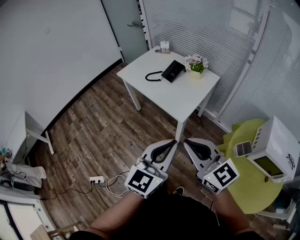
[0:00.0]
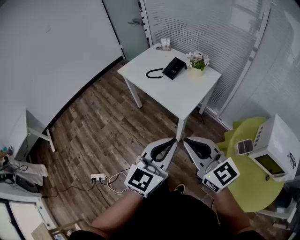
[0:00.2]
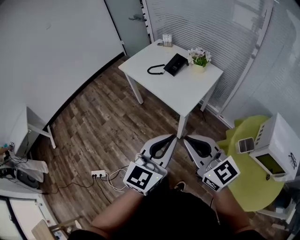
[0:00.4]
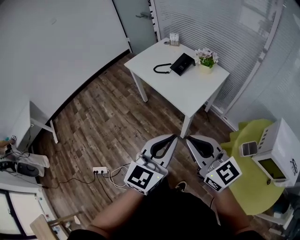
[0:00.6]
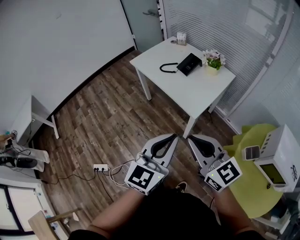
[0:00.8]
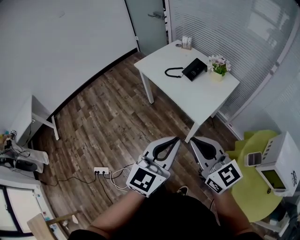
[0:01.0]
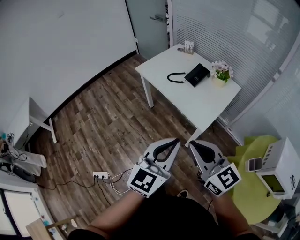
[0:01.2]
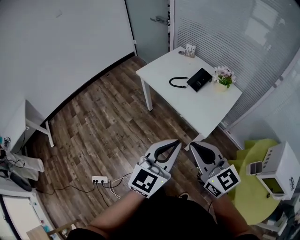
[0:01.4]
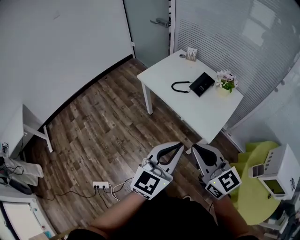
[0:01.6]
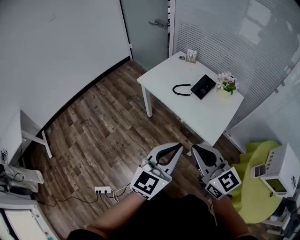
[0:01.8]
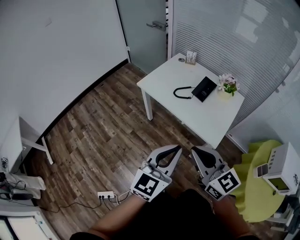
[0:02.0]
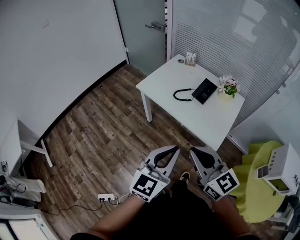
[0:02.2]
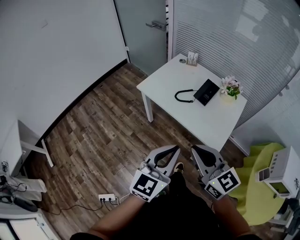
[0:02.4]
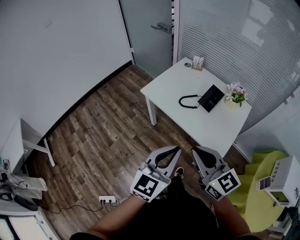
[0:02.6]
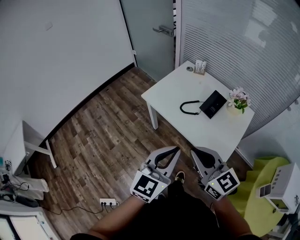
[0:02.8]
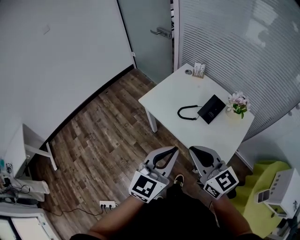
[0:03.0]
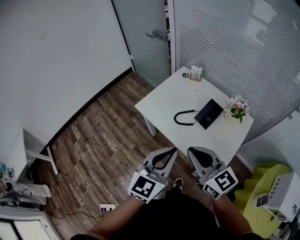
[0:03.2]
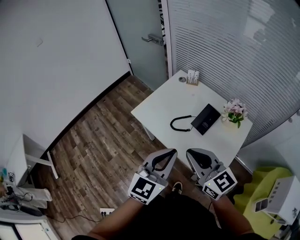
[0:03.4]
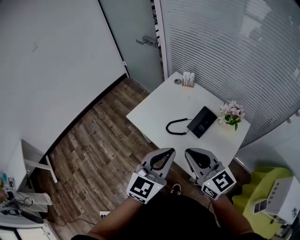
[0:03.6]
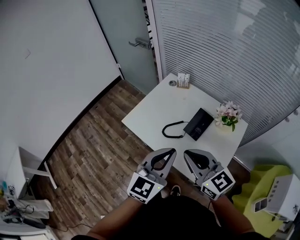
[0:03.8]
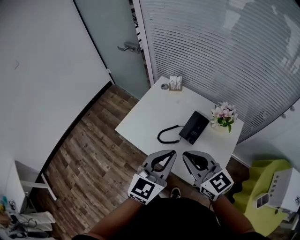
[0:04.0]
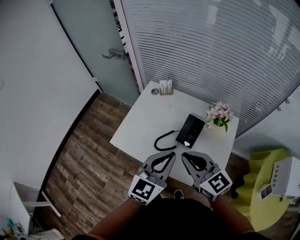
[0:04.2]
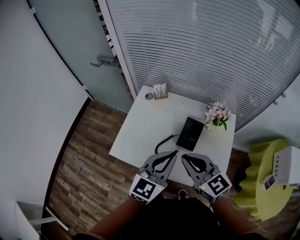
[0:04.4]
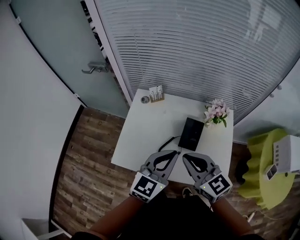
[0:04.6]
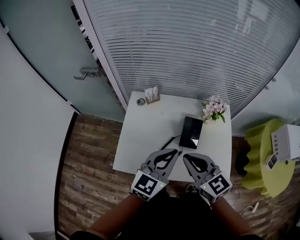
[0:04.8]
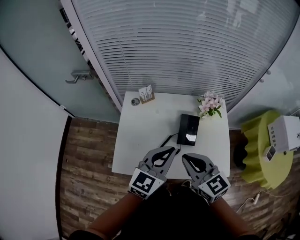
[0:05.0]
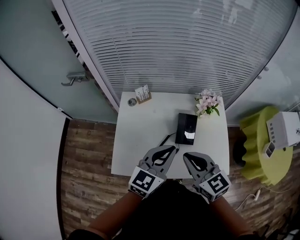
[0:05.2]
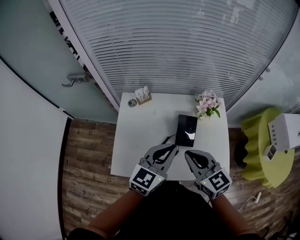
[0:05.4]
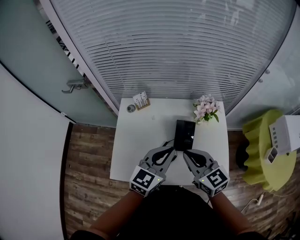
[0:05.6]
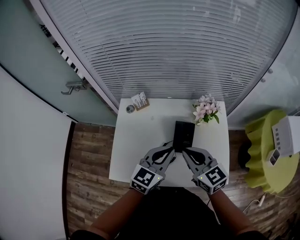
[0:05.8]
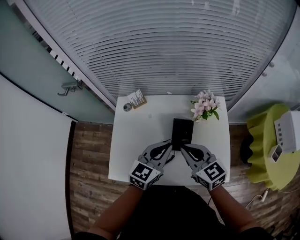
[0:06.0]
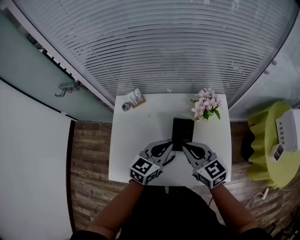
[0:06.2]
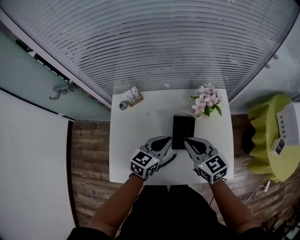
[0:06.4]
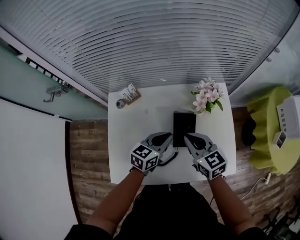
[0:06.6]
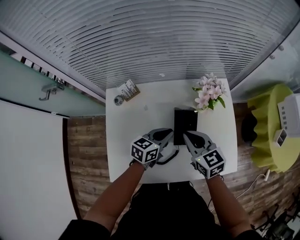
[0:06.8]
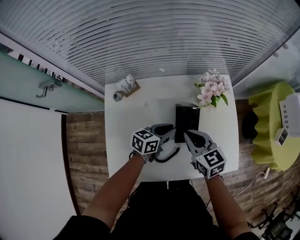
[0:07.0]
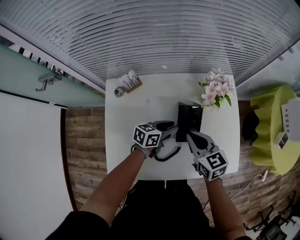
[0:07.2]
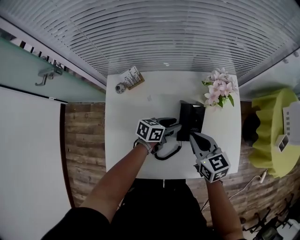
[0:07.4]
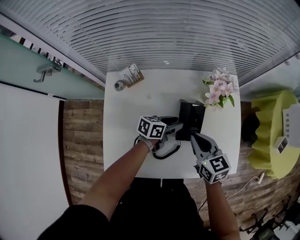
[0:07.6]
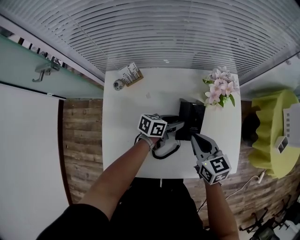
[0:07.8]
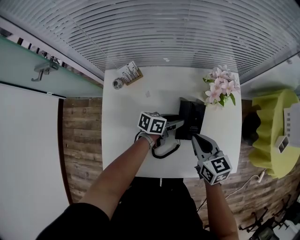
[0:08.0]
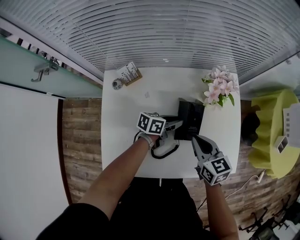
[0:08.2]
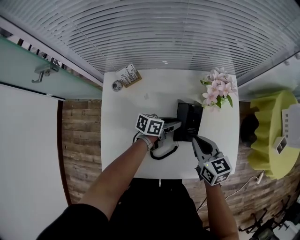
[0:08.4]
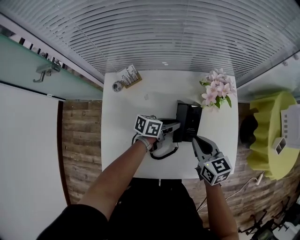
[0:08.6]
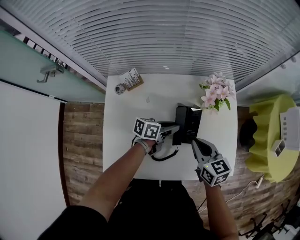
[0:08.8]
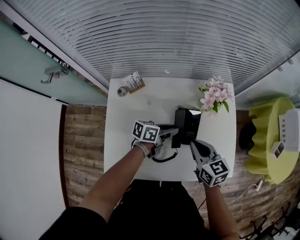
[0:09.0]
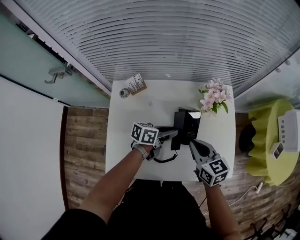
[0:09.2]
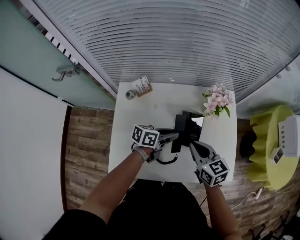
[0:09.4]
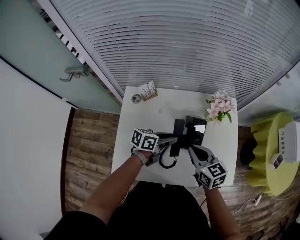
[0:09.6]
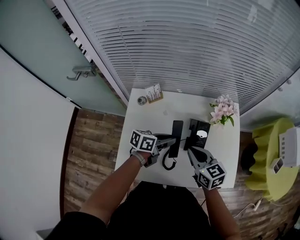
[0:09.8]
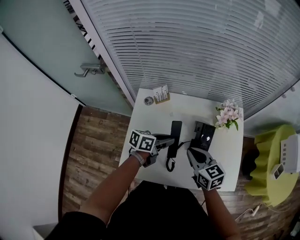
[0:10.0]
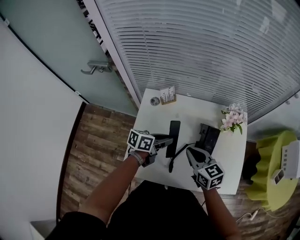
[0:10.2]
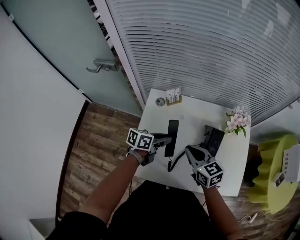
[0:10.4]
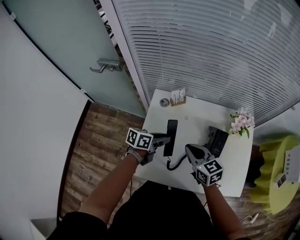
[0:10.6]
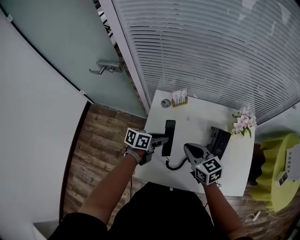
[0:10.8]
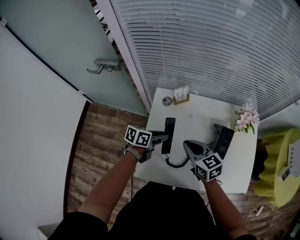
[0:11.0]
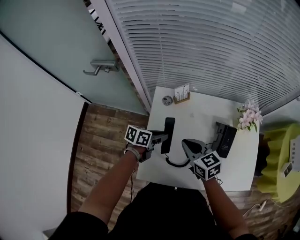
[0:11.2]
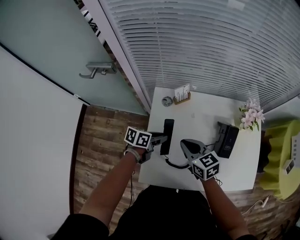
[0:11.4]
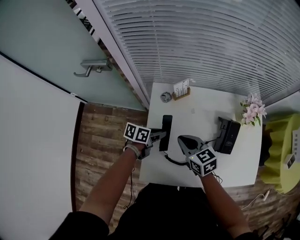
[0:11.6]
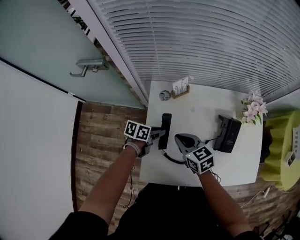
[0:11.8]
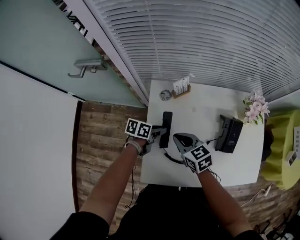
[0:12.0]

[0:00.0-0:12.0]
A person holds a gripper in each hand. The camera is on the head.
0:00.0 to 0:01.6: Both grippers travel together to the left and forward, some 25 cm.
0:01.6 to 0:03.0: The grippers both shift forward by approximately 20 cm.
0:03.0 to 0:04.4: Both grippers move forward, about 25 cm. The right gripper rotates about 20 degrees, while the left gripper turns by roughly 30 degrees.
0:04.4 to 0:06.0: The two grippers go about 15 cm forward and downward. The left gripper swivels roughly 20 degrees; the right gripper turns by some 20 degrees.
0:06.0 to 0:07.6: The left gripper shifts roughly 25 cm downward, turns by approximately 50 degrees, and opens up. The right gripper heads downward, covering approximately 15 cm, and rotates roughly 20 degrees.
0:07.6 to 0:09.0: The left gripper travels upward by roughly 5 cm, and closes.
0:09.0 to 0:10.4: The right gripper is displaced to the left by about 15 cm, while the left gripper shifts about 20 cm to the left, upward and backward.
0:10.4 to 0:12.0: The left gripper moves downward and to the left, some 15 cm. The right gripper goes roughly 20 cm to the left and downward.

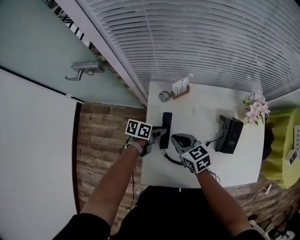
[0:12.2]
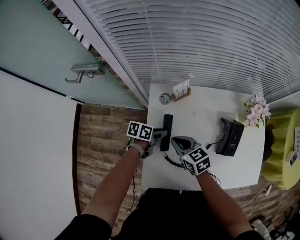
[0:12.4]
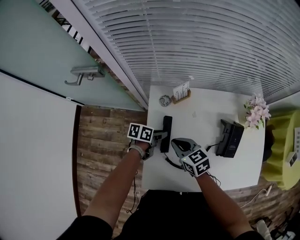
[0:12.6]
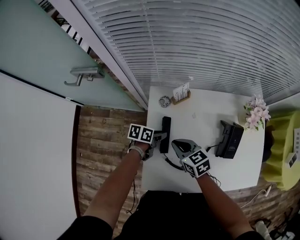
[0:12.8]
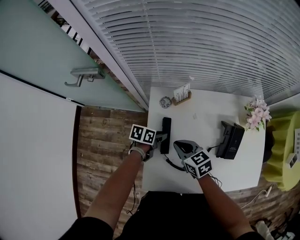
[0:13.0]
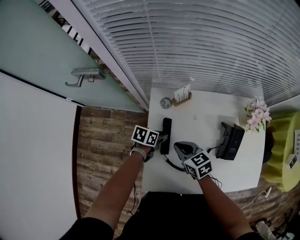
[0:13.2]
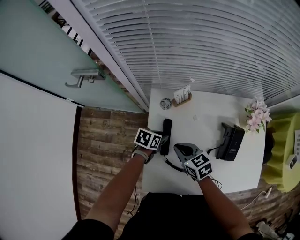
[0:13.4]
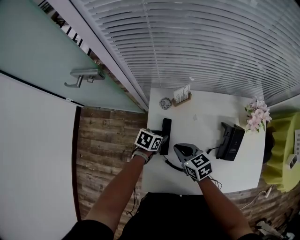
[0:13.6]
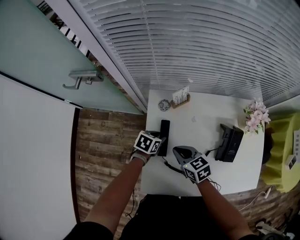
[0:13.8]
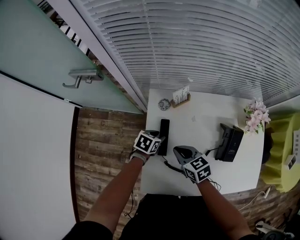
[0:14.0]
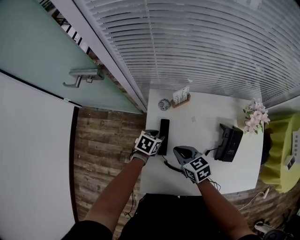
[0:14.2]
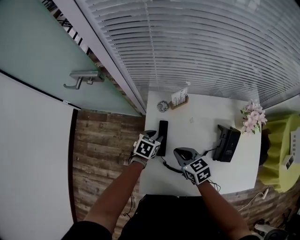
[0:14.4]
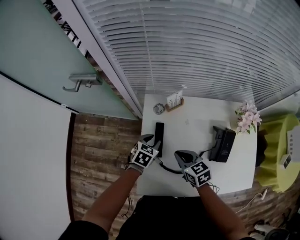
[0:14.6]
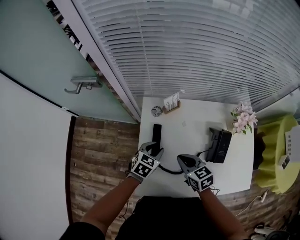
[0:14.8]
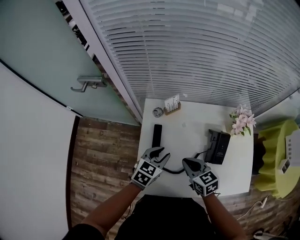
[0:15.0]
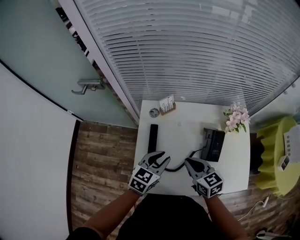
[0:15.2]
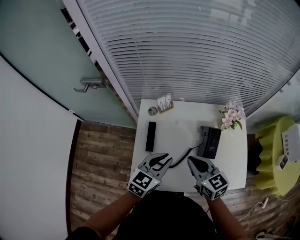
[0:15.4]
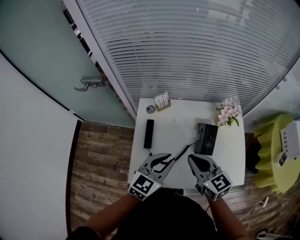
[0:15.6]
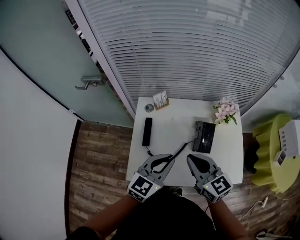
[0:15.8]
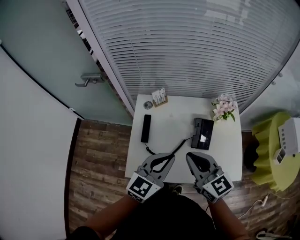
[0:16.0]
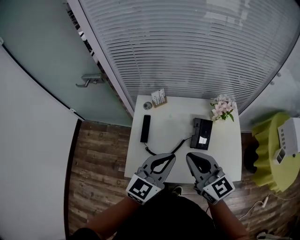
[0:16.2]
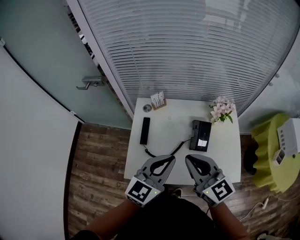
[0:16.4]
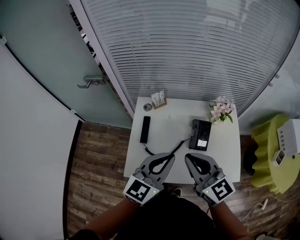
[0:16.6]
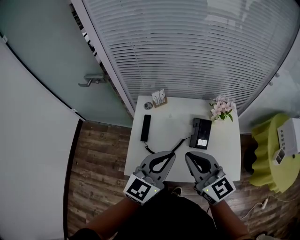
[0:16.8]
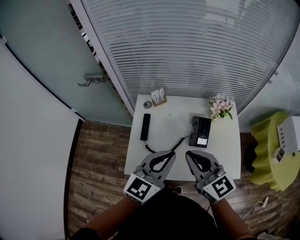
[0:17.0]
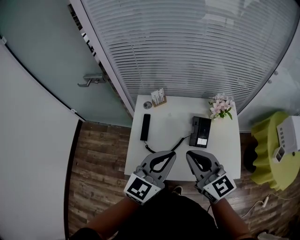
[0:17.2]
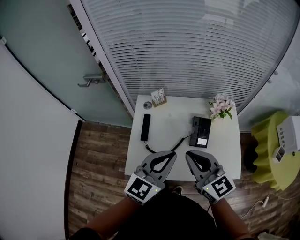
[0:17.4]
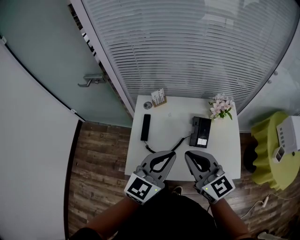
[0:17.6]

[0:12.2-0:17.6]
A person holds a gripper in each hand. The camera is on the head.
0:12.2 to 0:13.6: The left gripper swivels some 20 degrees.
0:13.6 to 0:15.0: The right gripper moves to the right, upward and backward, approximately 10 cm. Meanwhile the left gripper travels upward, backward and to the right by approximately 15 cm, and swivels approximately 30 degrees.
0:15.0 to 0:16.2: The grippers both shift upward, backward and to the right by roughly 25 cm. The left gripper rotates roughly 30 degrees, and closes, while the right gripper swivels some 30 degrees.
0:16.2 to 0:17.6: The grippers move only a little.

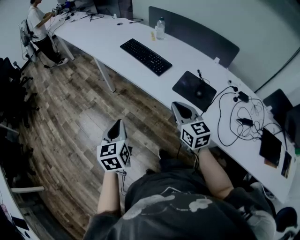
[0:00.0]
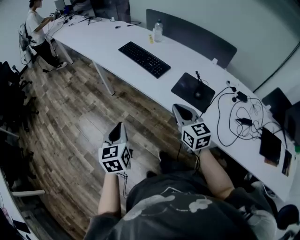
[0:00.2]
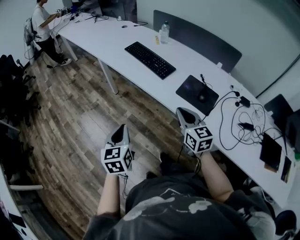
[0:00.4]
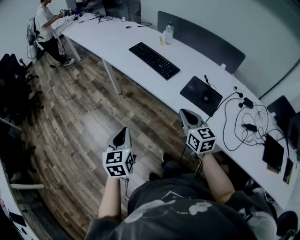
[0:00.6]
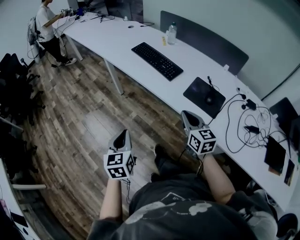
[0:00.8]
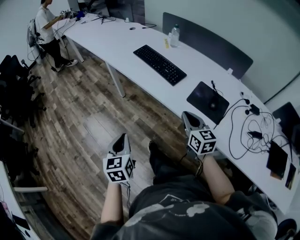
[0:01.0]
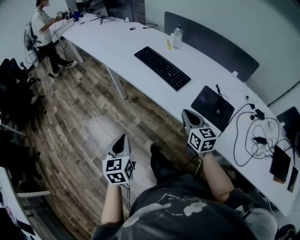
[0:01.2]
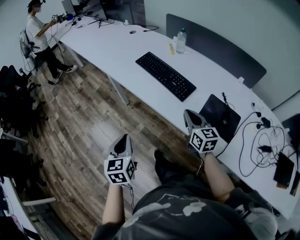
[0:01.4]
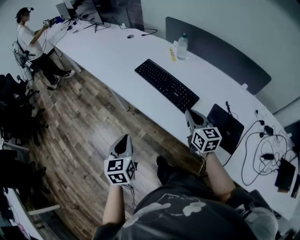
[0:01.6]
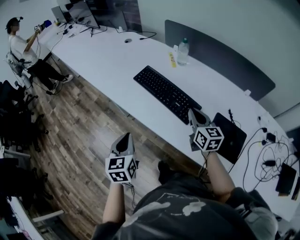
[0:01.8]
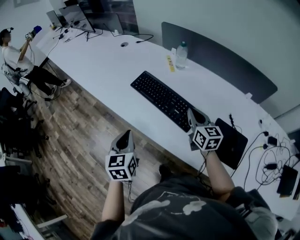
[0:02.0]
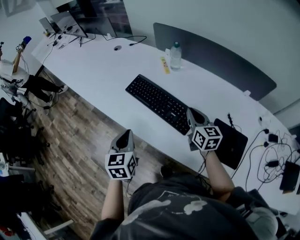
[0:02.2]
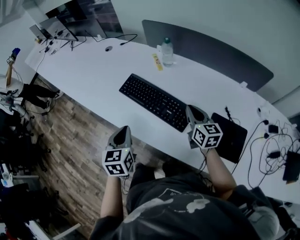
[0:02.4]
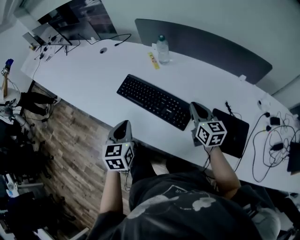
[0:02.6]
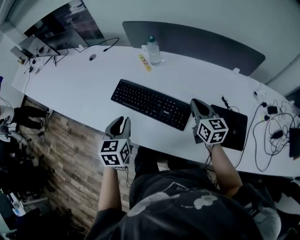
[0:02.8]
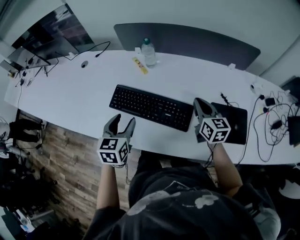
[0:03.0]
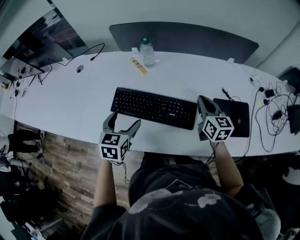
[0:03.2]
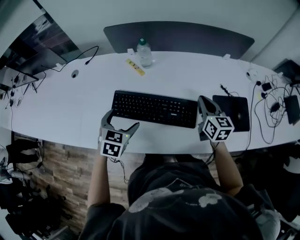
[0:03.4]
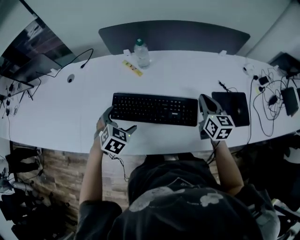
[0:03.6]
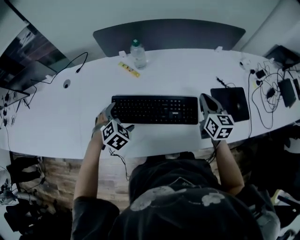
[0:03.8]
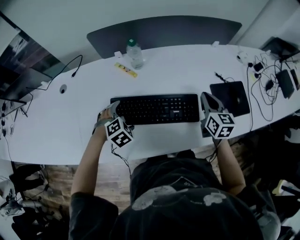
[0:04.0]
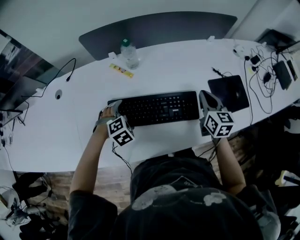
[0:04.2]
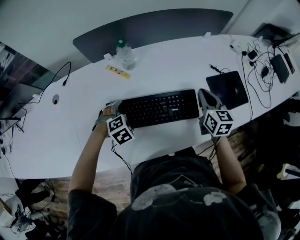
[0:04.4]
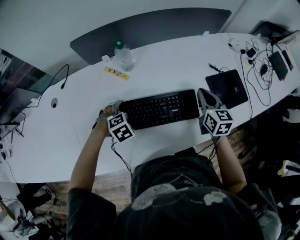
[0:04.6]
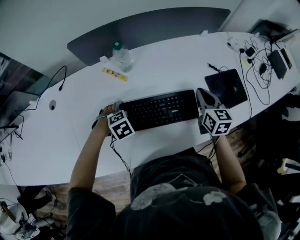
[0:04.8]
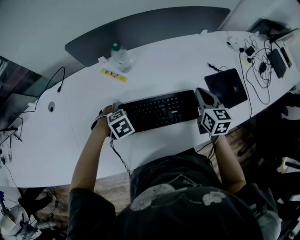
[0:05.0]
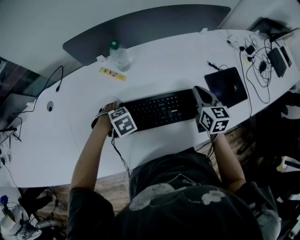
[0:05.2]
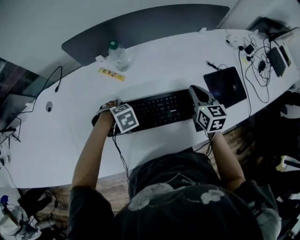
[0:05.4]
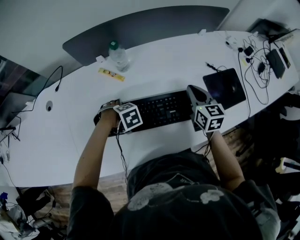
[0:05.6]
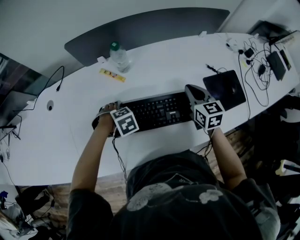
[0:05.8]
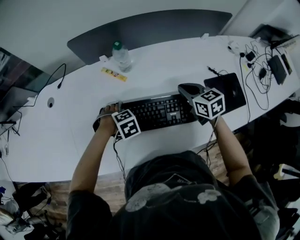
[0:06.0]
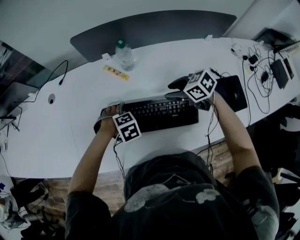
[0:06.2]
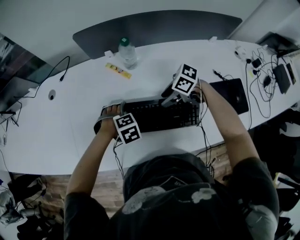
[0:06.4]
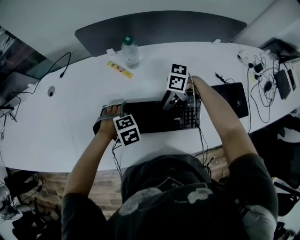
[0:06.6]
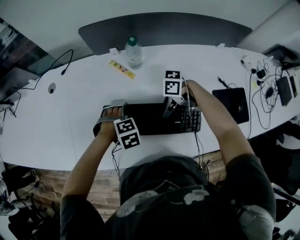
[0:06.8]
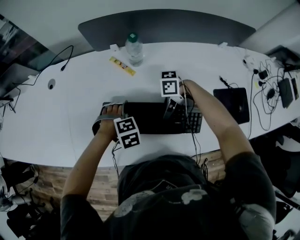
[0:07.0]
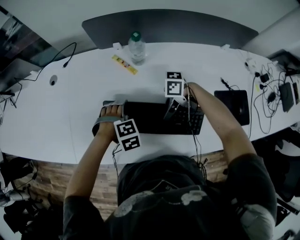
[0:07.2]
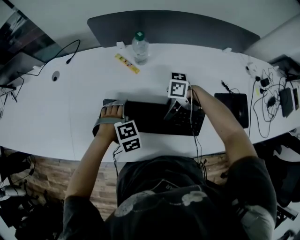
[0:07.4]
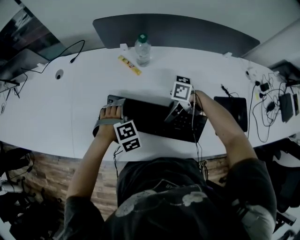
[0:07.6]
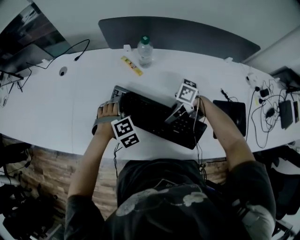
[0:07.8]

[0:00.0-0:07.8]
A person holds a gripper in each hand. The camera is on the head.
0:00.0 to 0:01.6: Both grippers move forward, some 25 cm.
0:01.6 to 0:03.2: The left gripper moves approximately 35 cm, turns by approximately 50 degrees, and opens its fingers. The right gripper ends up approximately 20 cm from where it was, and turns by roughly 40 degrees.
0:03.2 to 0:04.6: The left gripper moves downward, about 15 cm, and angles its fingers downward, by about 40 degrees. Meanwhile the right gripper rotates some 20 degrees.
0:04.6 to 0:06.2: The right gripper moves approximately 15 cm, changes its angle by some 60 degrees, and opens.
0:06.2 to 0:07.8: The right gripper shifts by about 10 cm, turns by about 60 degrees, and closes, while the left gripper turns by approximately 30 degrees.
